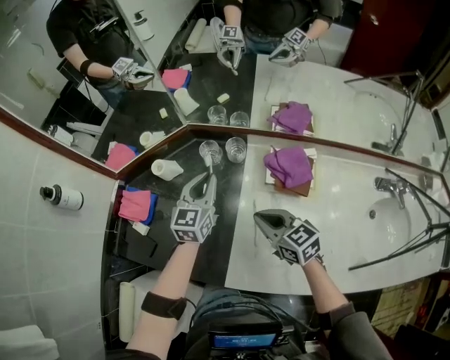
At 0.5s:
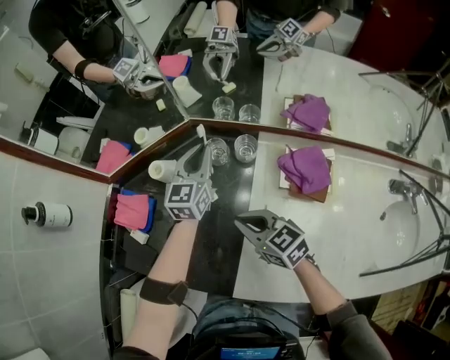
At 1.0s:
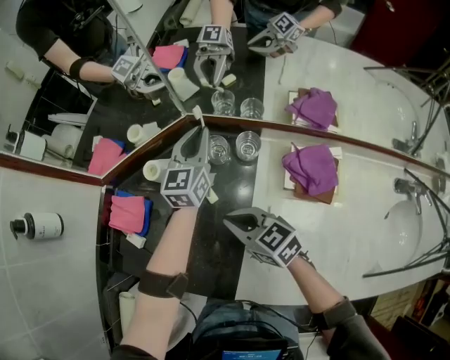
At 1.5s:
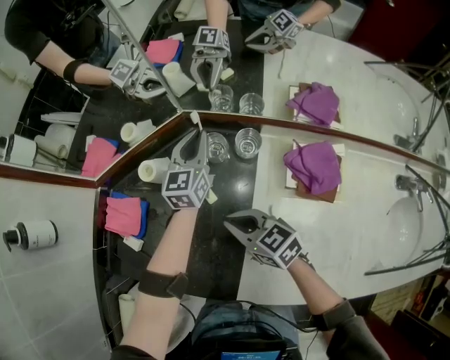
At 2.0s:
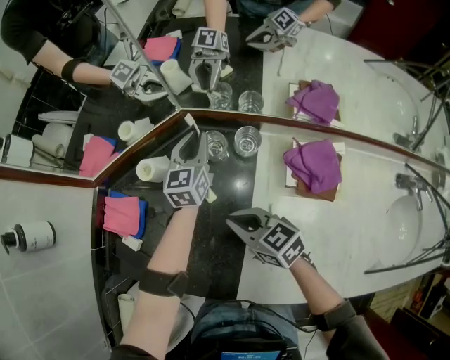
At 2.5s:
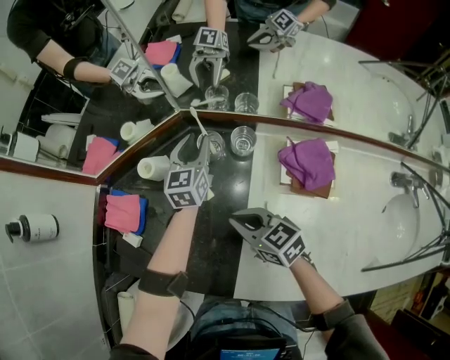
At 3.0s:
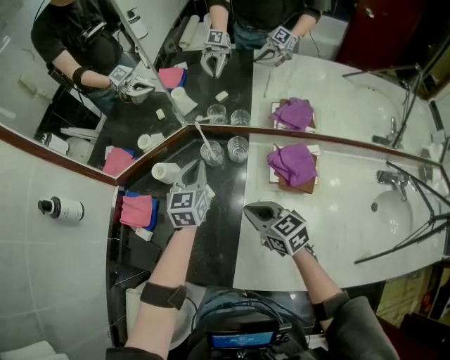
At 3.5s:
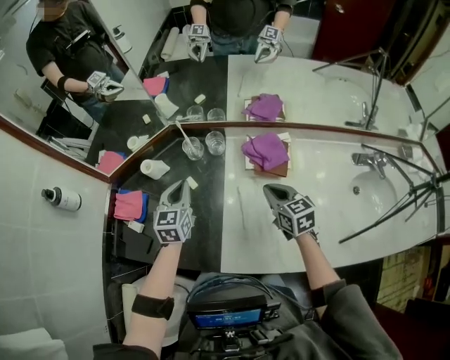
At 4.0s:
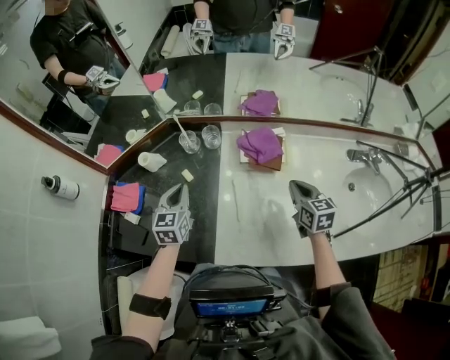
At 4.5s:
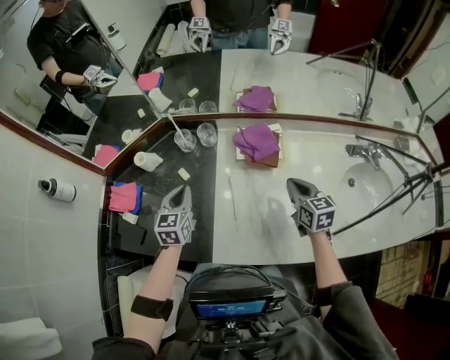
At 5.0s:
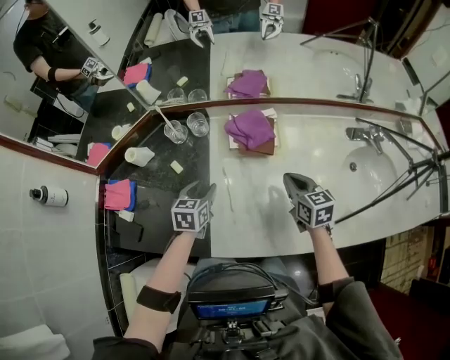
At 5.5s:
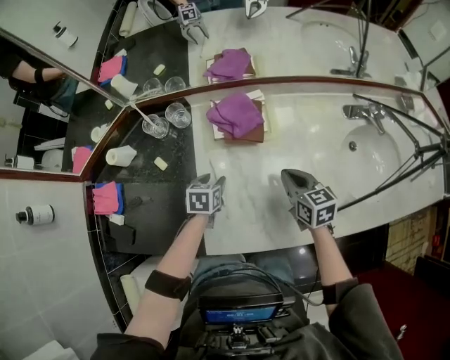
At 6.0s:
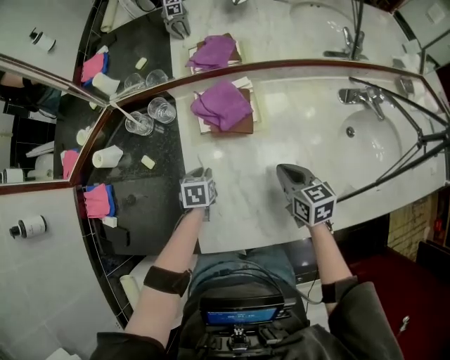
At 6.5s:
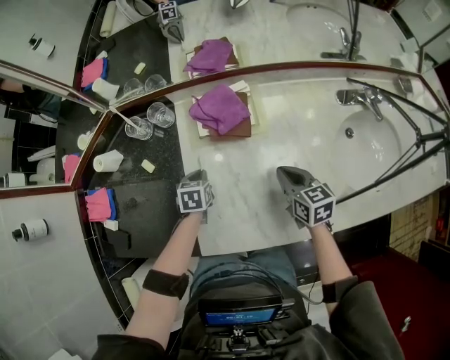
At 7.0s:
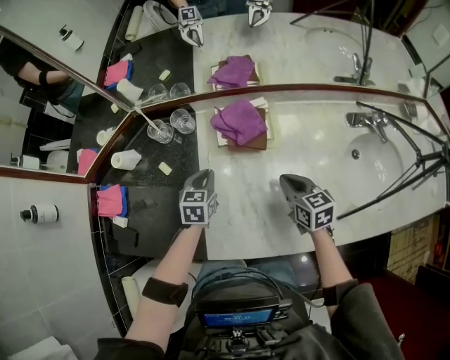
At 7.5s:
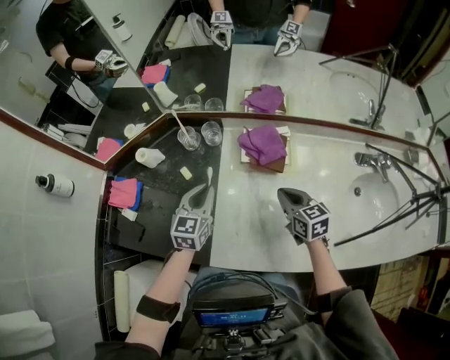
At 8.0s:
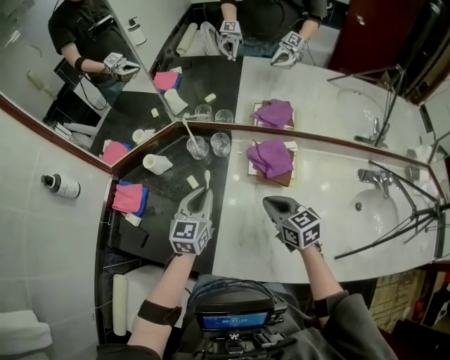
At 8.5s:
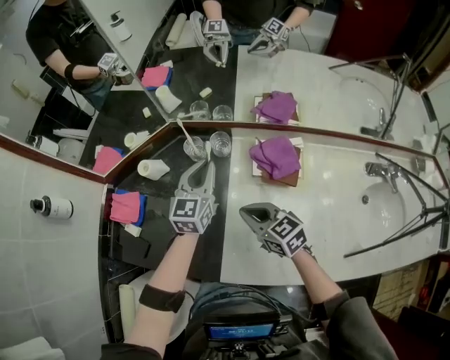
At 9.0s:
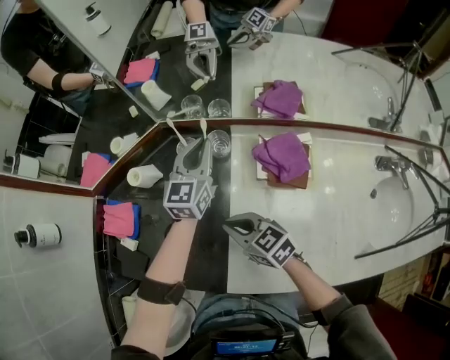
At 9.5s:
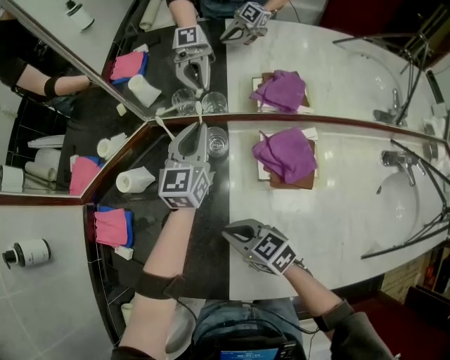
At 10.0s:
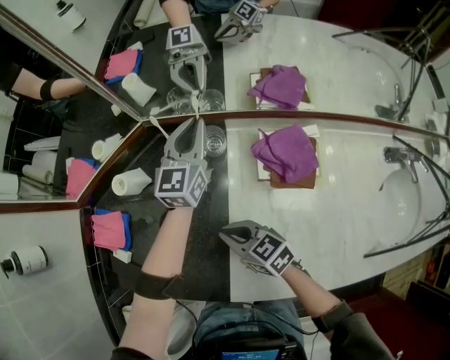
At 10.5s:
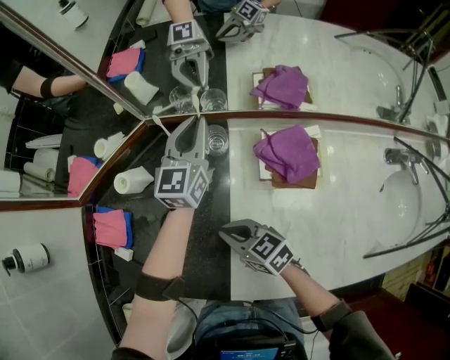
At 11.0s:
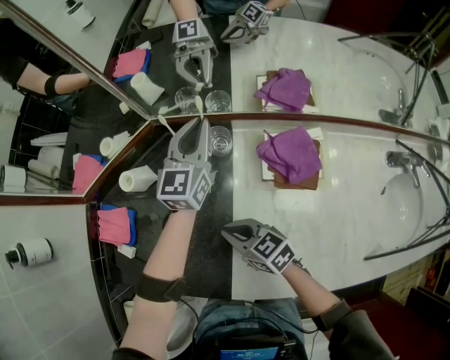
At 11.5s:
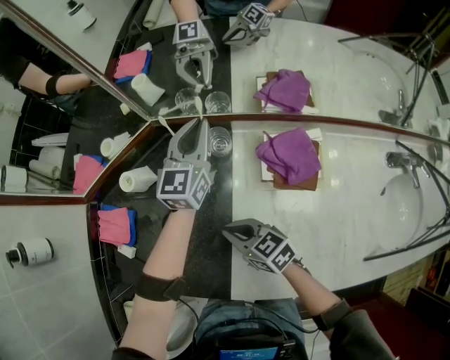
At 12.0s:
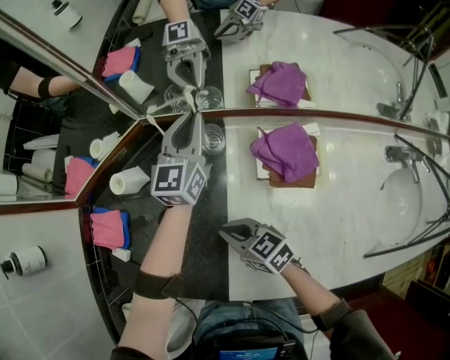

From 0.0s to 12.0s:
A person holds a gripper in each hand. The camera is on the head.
From 0.0s to 2.0s: The right gripper moves to the left, forward and downward, roughly 15 cm. The left gripper shifts some 20 cm forward and downward.
From 2.0s to 4.0s: The left gripper ends up some 30 cm from where it was, and opens and closes again. Meanwhile the right gripper shifts by roughly 35 cm, and changes its angle by roughly 40 degrees.
From 4.0s to 6.0s: The right gripper goes about 10 cm downward. The left gripper travels downward and to the right by some 25 cm, points its fingers about 40 degrees further downward, and opens.
From 6.0s to 8.0s: The right gripper shifts some 20 cm to the left, upward and forward, and turns by approximately 30 degrees. Meanwhile the left gripper goes roughly 25 cm upward and to the left, and points its fingers about 40 degrees further upward.
From 8.0s to 10.0s: The right gripper is displaced to the left and downward by some 20 cm, while the left gripper goes about 25 cm forward.
From 10.0s to 12.0s: There are only small adjustments of the grippers.

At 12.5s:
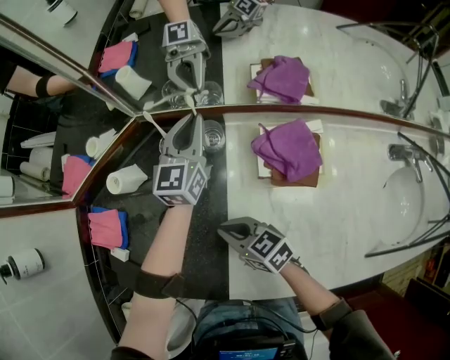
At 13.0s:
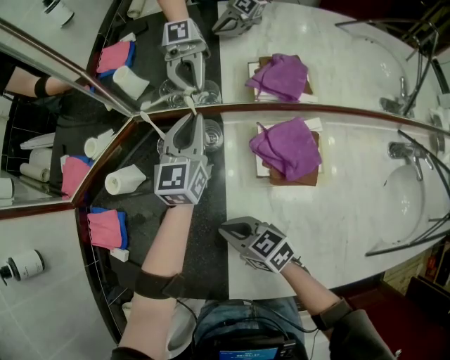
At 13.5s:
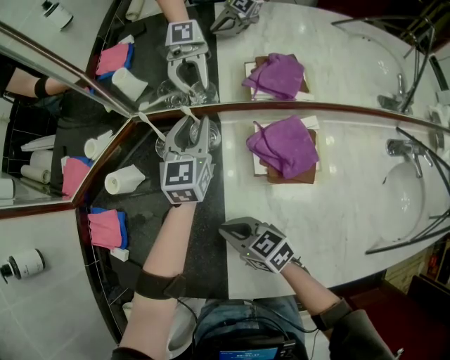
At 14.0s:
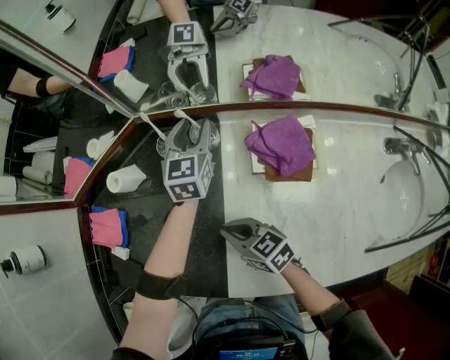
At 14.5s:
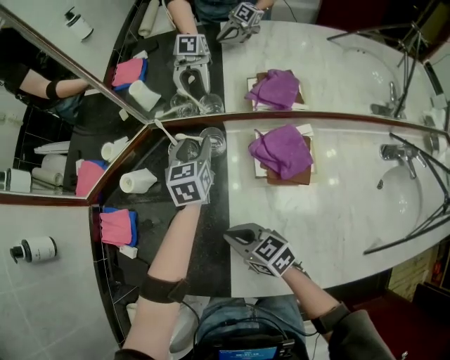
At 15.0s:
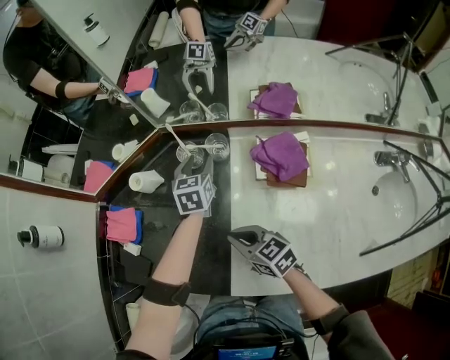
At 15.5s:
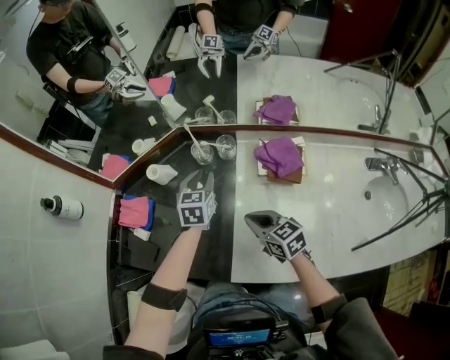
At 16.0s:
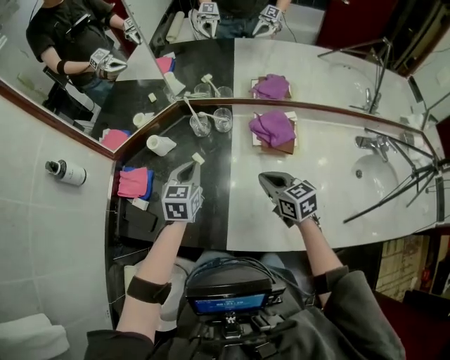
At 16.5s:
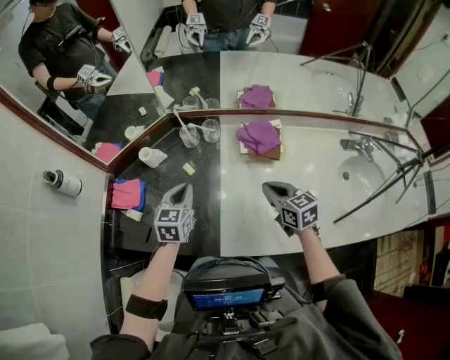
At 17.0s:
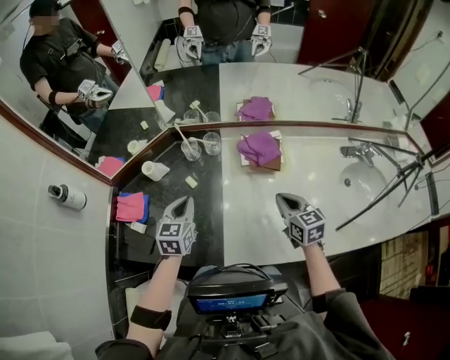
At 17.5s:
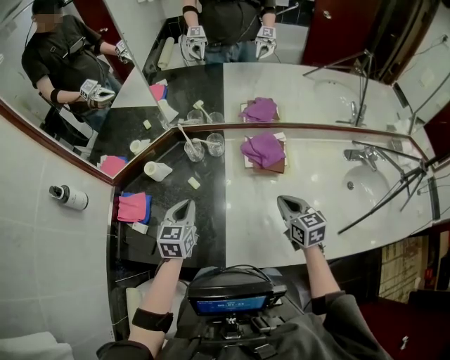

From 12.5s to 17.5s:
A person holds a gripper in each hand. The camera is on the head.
From 12.5s to 15.0s: The left gripper moves to the left and backward, roughly 10 cm, swivels some 30 degrees, and opens its fingers; the right gripper is displaced upward by some 5 cm.
From 15.0s to 17.5s: The right gripper goes roughly 20 cm to the right and upward, and turns by some 30 degrees; the left gripper moves backward, upward and to the left, approximately 25 cm, and closes.

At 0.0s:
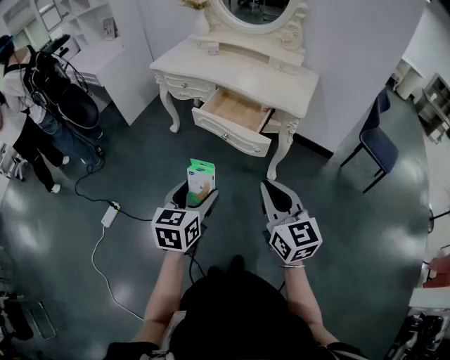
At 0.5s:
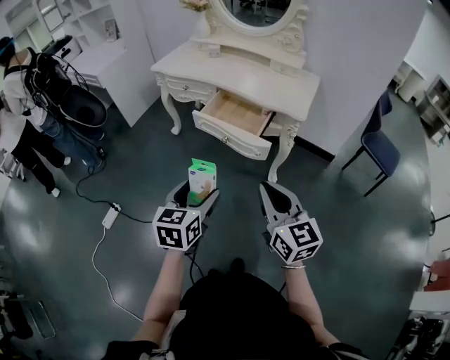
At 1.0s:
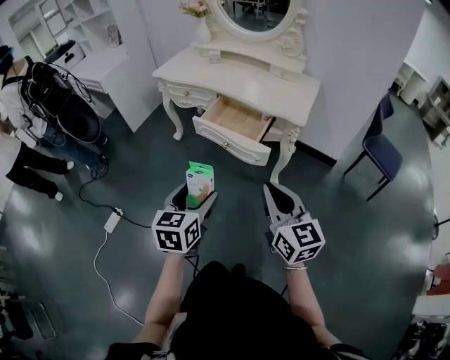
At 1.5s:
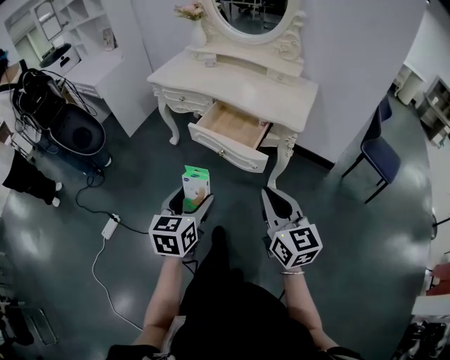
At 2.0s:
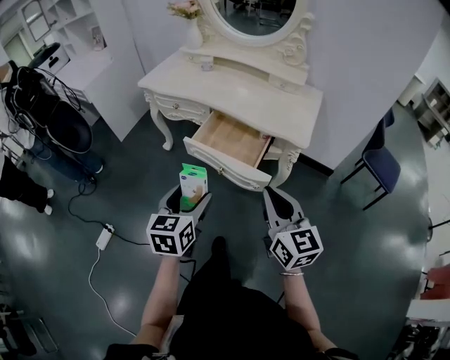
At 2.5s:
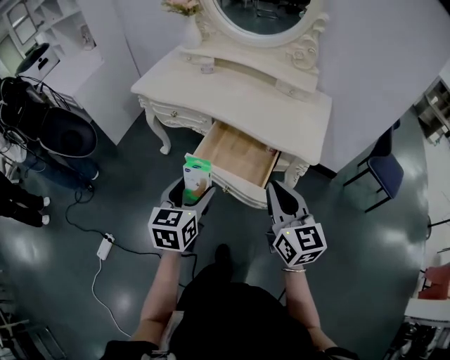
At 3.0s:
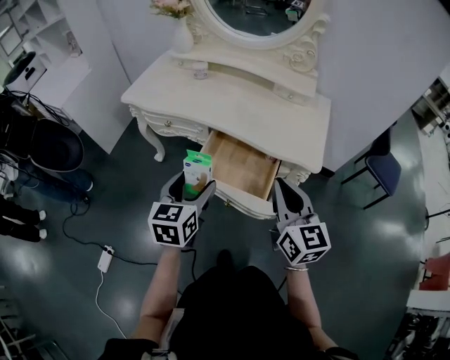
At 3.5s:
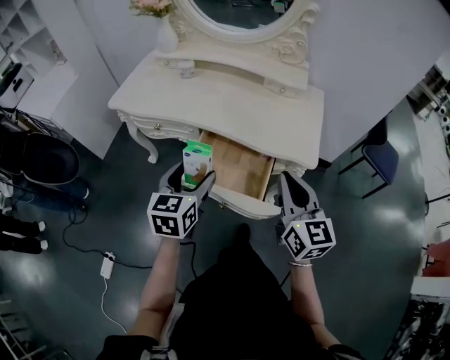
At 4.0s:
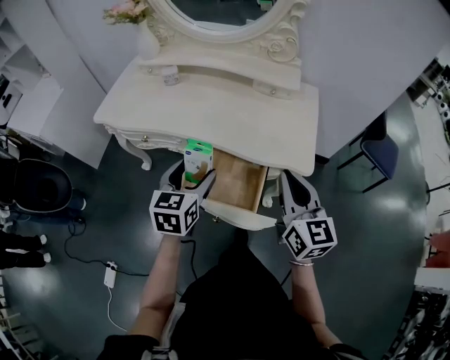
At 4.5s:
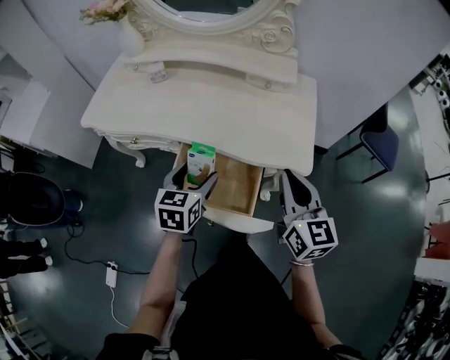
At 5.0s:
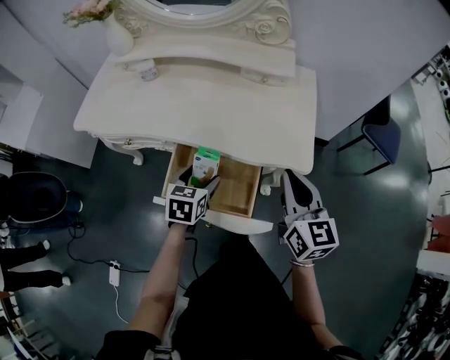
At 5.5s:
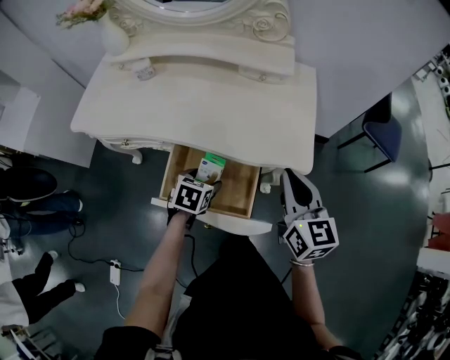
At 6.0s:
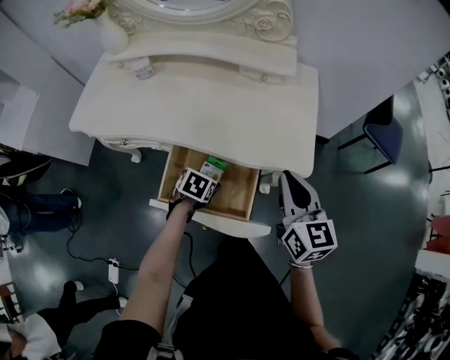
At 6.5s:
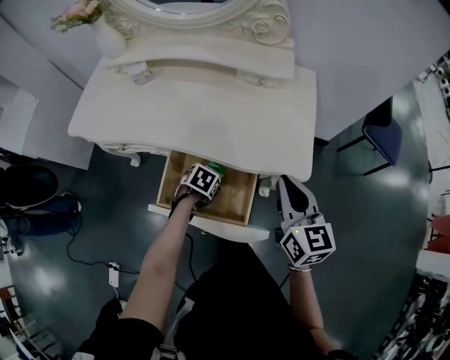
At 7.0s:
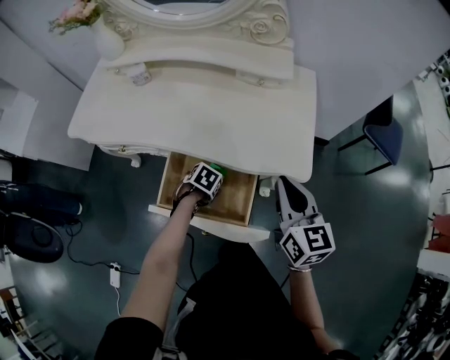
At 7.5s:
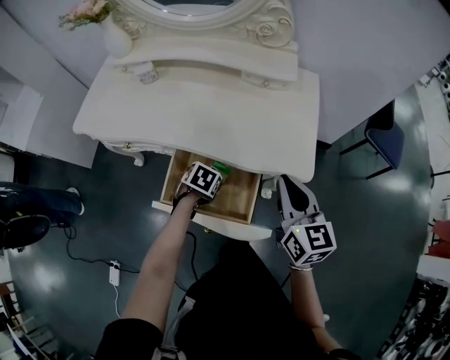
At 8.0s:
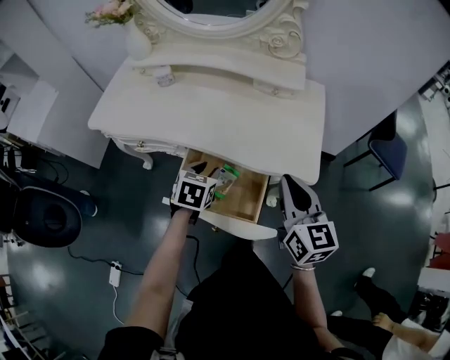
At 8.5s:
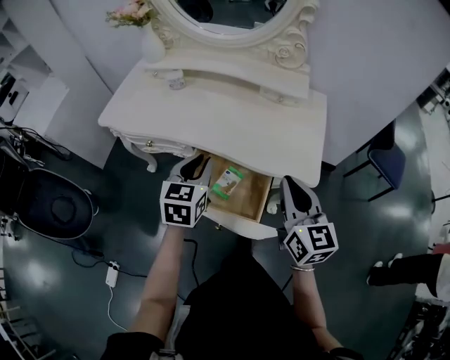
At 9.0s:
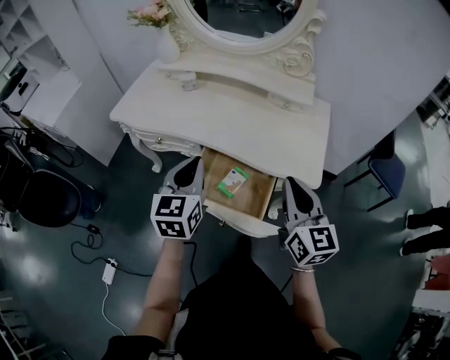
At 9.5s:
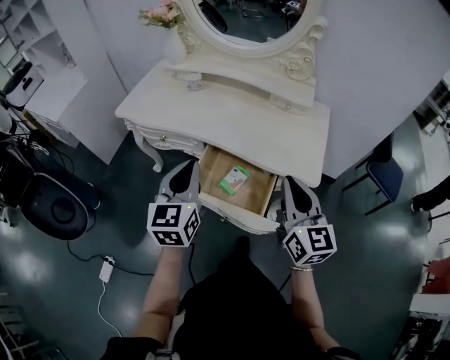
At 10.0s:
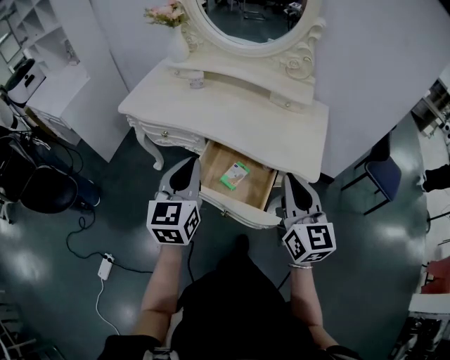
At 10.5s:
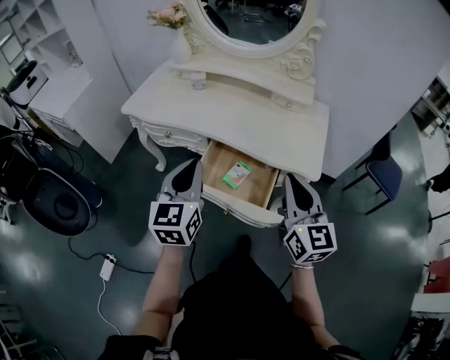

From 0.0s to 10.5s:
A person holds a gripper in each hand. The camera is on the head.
From 0.0s to 2.0s: Both grippers move forward, some 15 cm.
From 2.0s to 4.0s: The grippers both shift forward by approximately 25 cm.
From 4.0s to 6.5s: The left gripper heads downward, covering approximately 25 cm, and tips its fingers downward by roughly 50 degrees. The right gripper shifts by roughly 10 cm.
From 6.5s to 8.5s: The left gripper heads upward, covering roughly 25 cm, tilts its fingers some 50 degrees upward, and closes. The right gripper heads upward, covering roughly 5 cm.
From 8.5s to 10.5s: The left gripper travels backward, upward and to the left by some 15 cm, and rotates approximately 20 degrees, while the right gripper goes some 10 cm backward.
